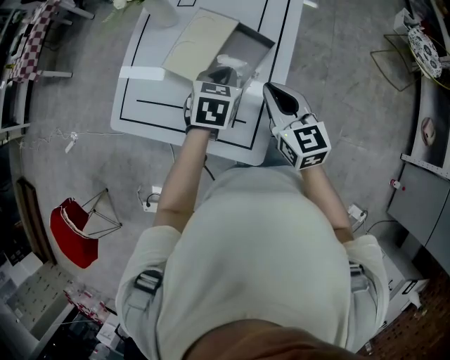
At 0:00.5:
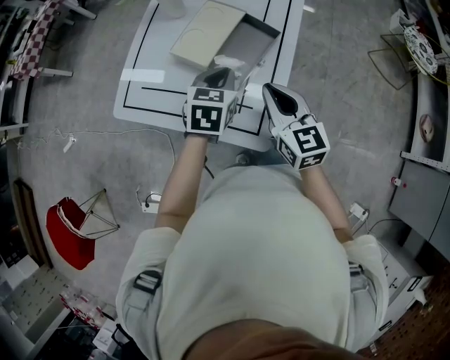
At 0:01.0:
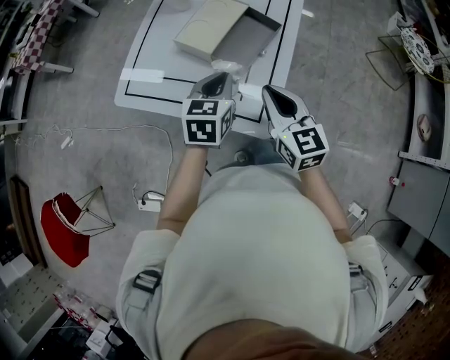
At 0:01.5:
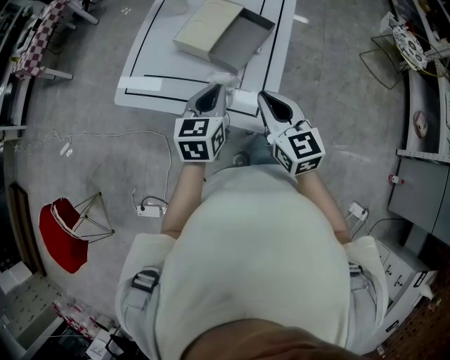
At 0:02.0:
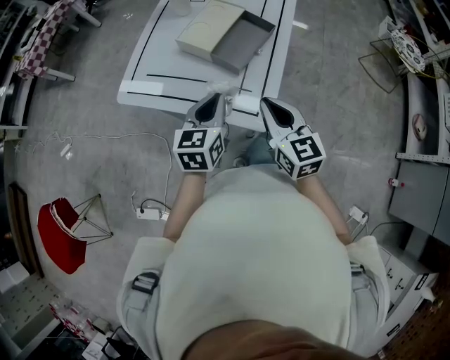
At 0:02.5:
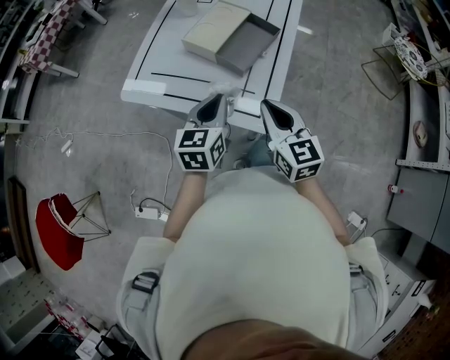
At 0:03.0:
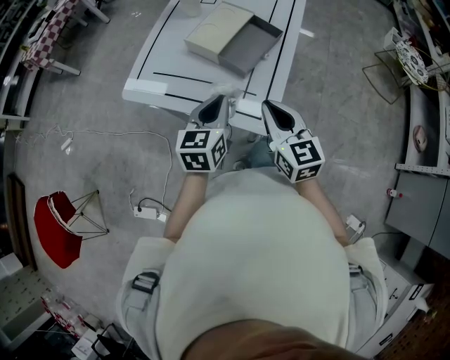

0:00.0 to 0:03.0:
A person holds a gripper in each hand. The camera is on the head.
0:00.0 to 0:01.5: The left gripper moves backward and to the left, roughly 15 cm, and changes its angle by roughly 20 degrees; the right gripper is displaced backward by approximately 15 cm.
0:01.5 to 0:03.0: The grippers make only small movements.

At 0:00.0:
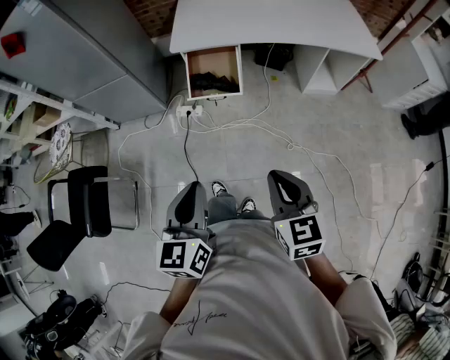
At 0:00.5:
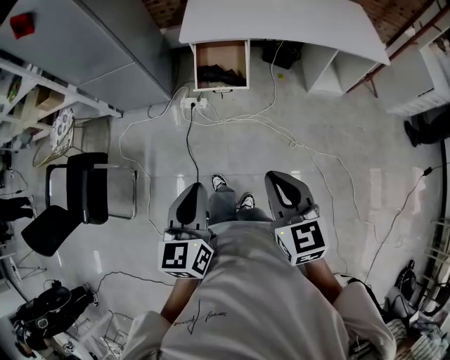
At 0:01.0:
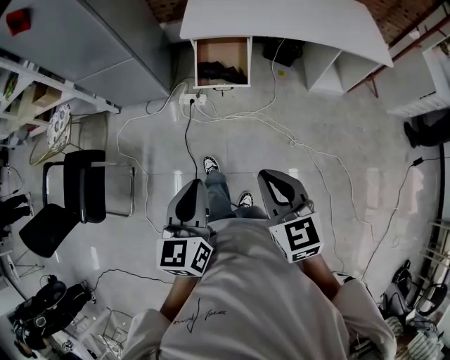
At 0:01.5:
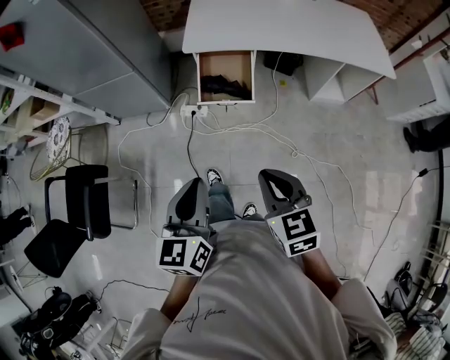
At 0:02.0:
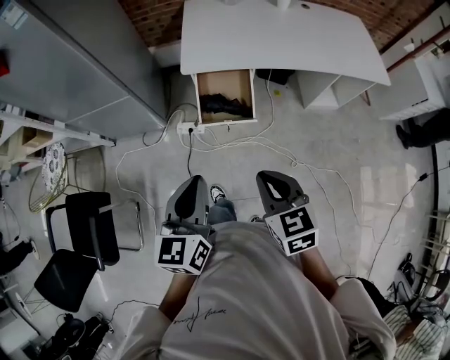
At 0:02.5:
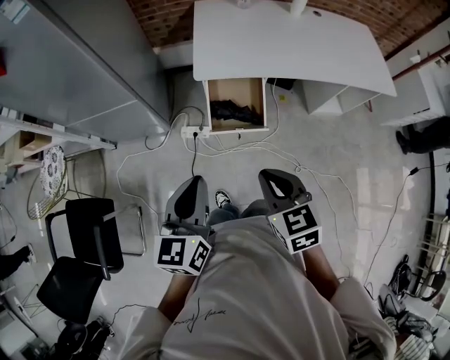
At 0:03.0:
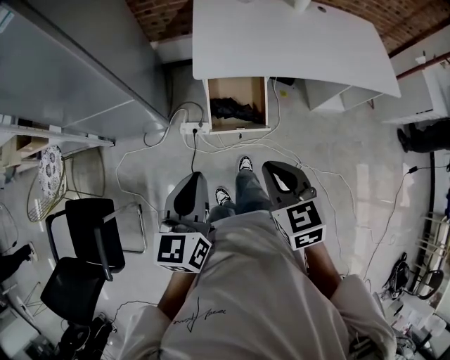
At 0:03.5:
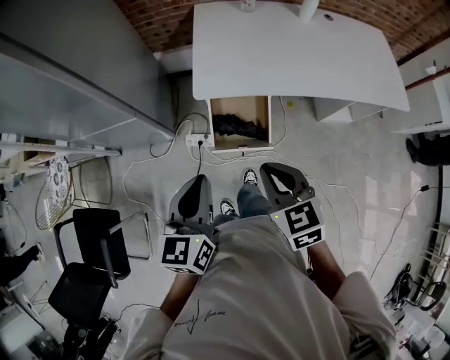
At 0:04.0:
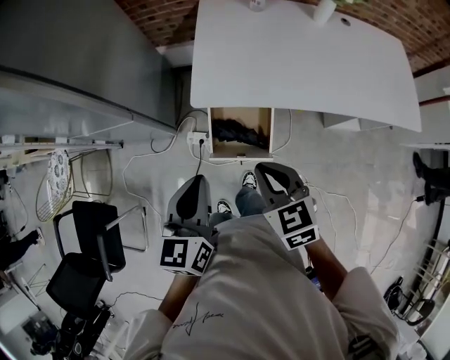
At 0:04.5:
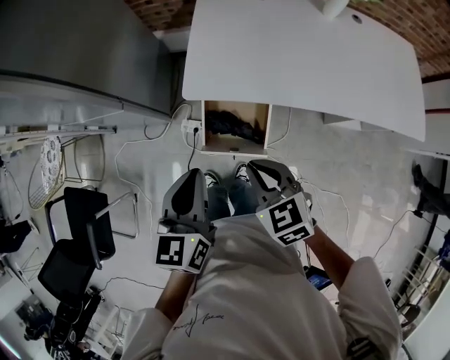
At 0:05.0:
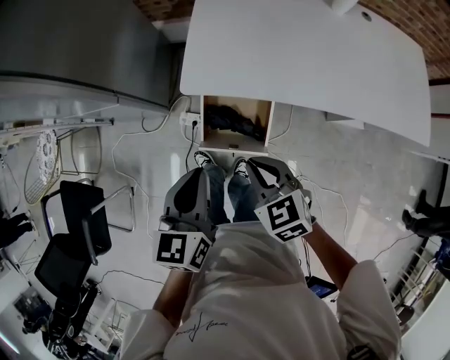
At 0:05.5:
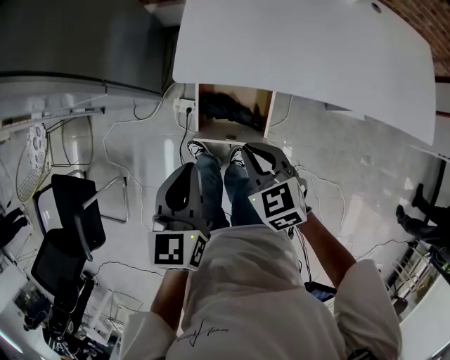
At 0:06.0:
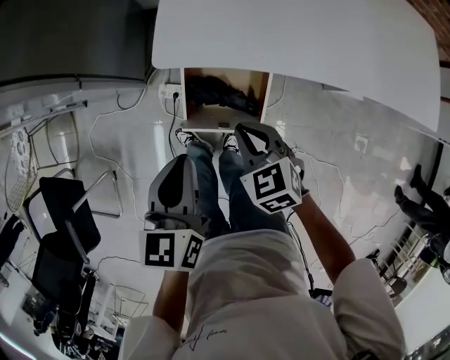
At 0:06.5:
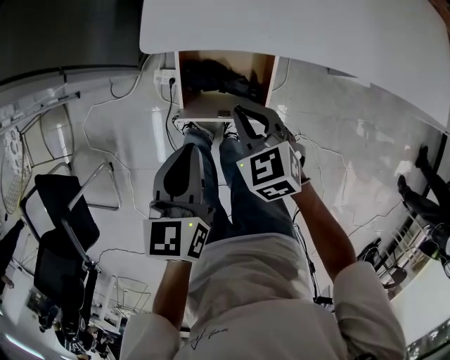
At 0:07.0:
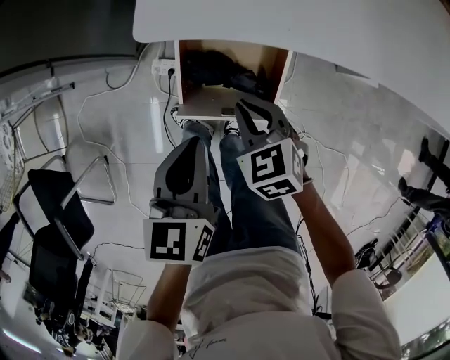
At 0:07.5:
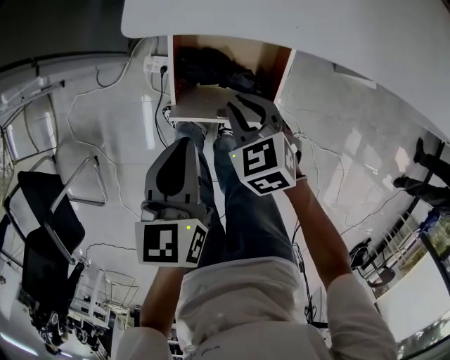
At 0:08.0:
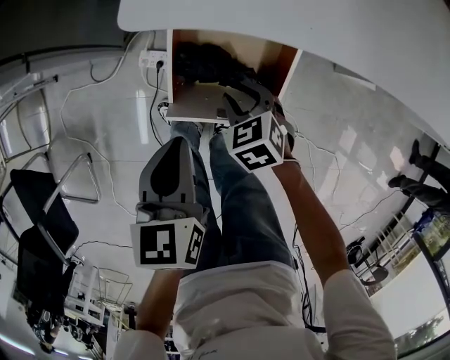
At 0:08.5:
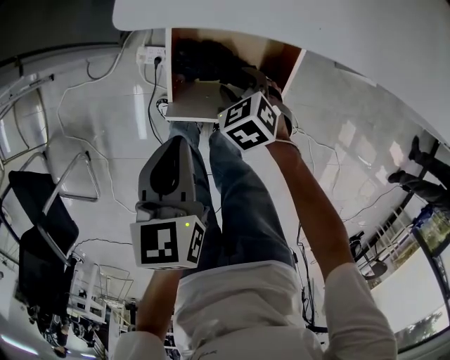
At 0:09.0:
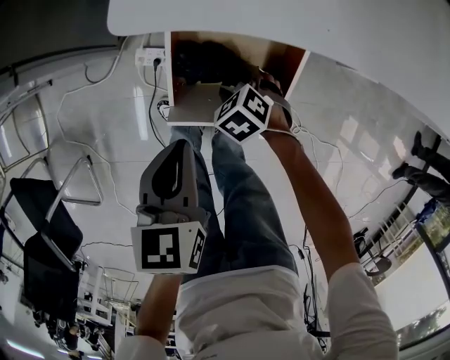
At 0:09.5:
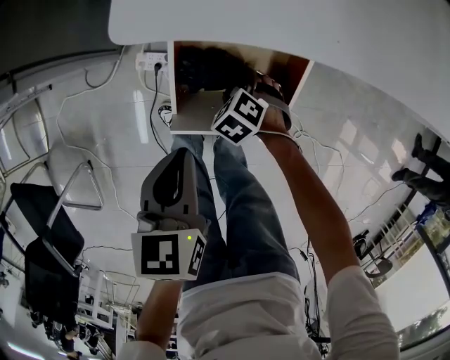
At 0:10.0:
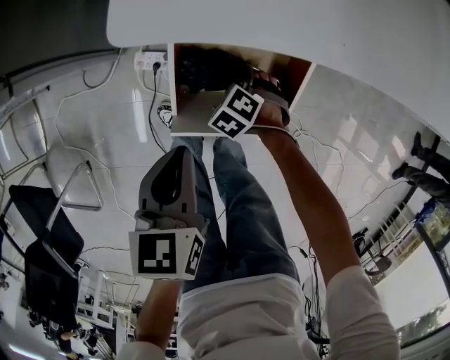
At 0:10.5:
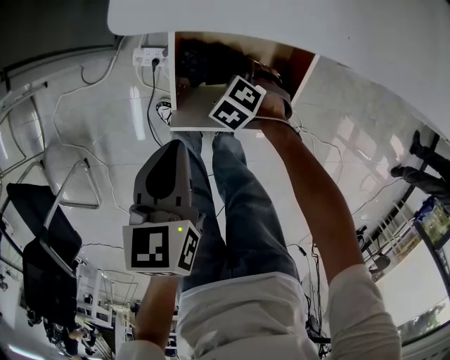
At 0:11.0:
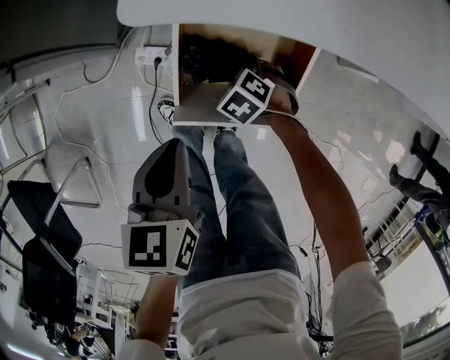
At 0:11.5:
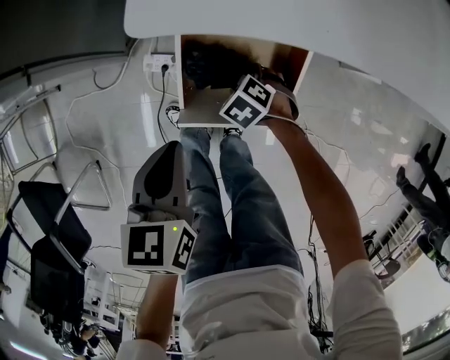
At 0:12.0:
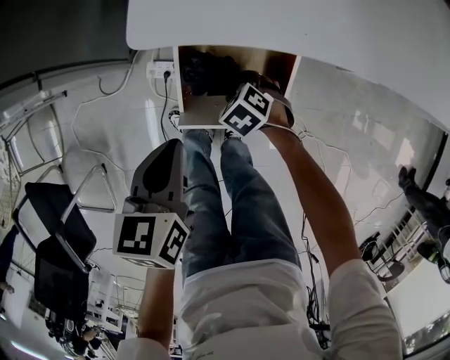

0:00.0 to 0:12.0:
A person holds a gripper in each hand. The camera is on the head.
0:00.0 to 0:02.0: The right gripper moves forward and to the left, some 20 cm. The left gripper moves forward, some 20 cm.
0:02.0 to 0:04.0: Both grippers move forward, about 25 cm.
0:04.0 to 0:06.0: Both grippers travel together downward, about 15 cm.
0:06.0 to 0:08.0: The grippers both shift downward by roughly 20 cm. The right gripper opens.
0:08.0 to 0:10.0: The right gripper is displaced downward by about 15 cm, turns by roughly 30 degrees, and opens.
0:10.0 to 0:12.0: Both grippers move upward, about 5 cm.

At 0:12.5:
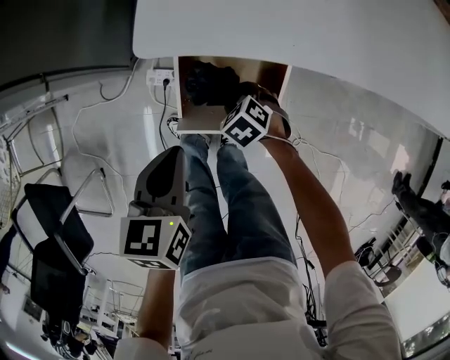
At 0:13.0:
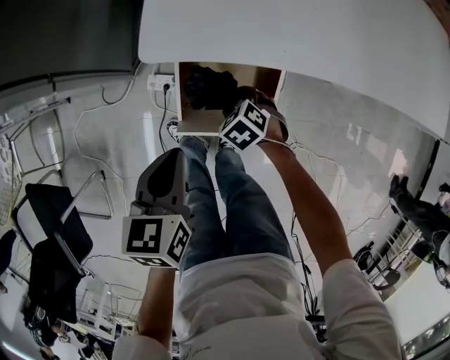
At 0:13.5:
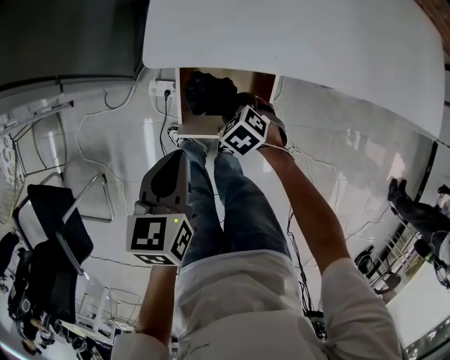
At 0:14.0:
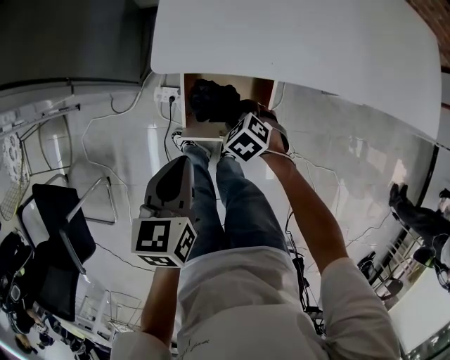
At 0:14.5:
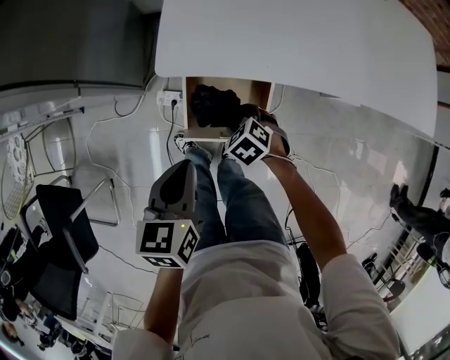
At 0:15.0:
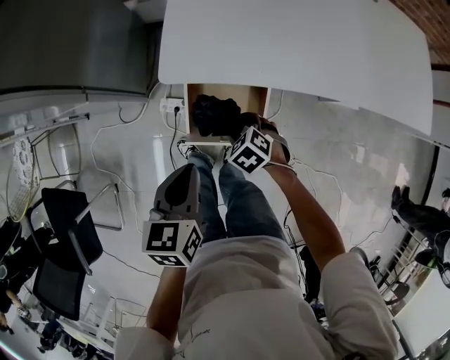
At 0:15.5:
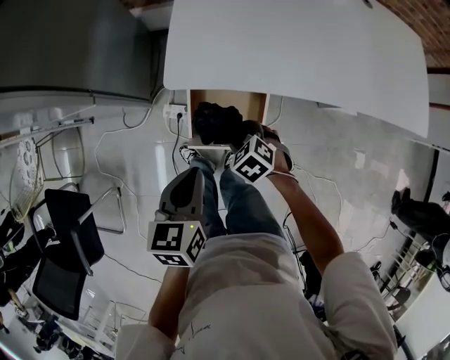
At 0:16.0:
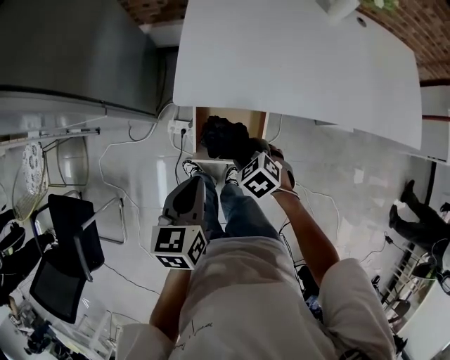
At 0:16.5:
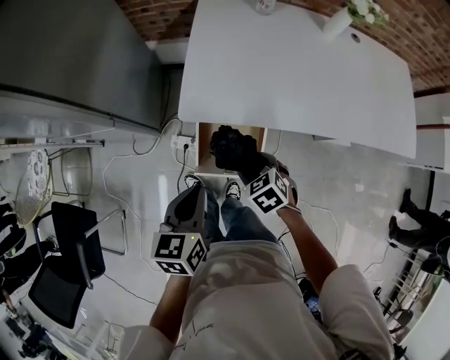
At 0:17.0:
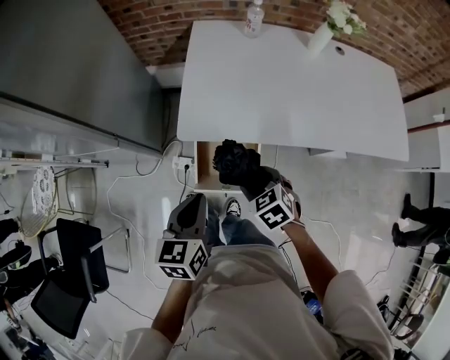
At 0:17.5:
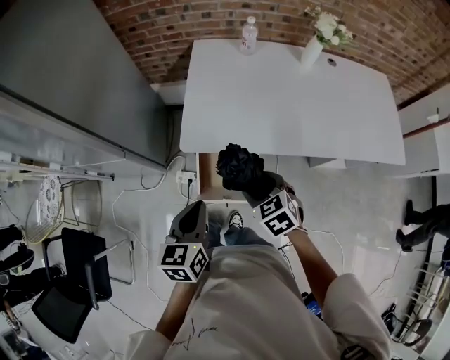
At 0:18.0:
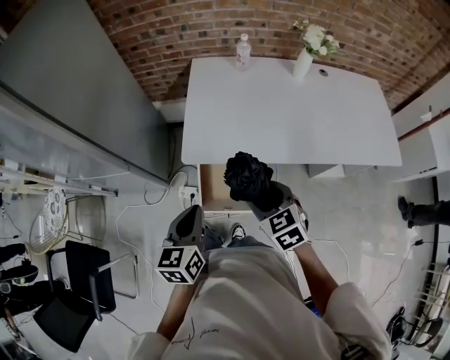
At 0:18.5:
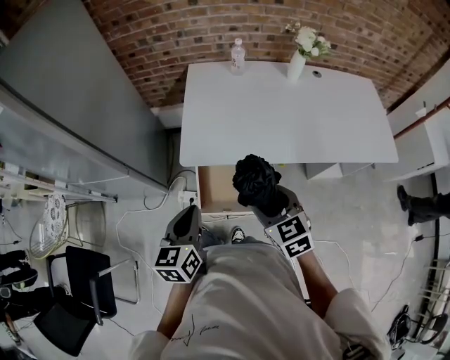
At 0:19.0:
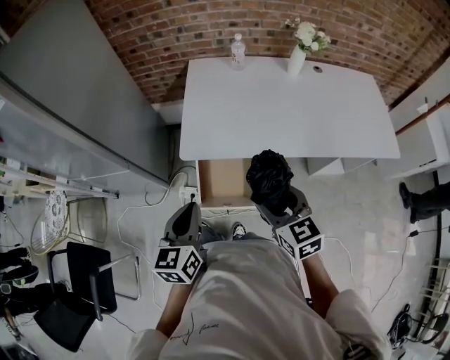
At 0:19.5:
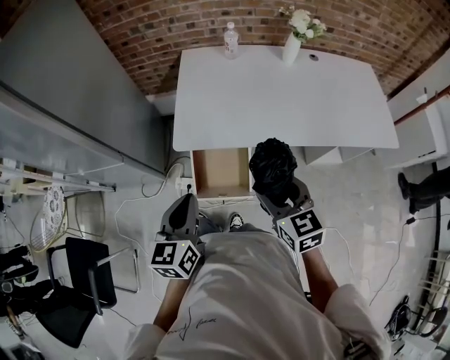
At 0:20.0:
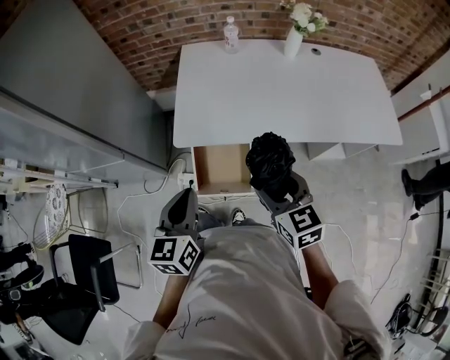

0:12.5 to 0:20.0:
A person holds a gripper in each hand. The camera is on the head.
0:12.5 to 0:14.5: The grippers both shift upward by some 10 cm.
0:14.5 to 0:16.5: The right gripper is displaced upward by approximately 15 cm. Meanwhile the left gripper is displaced upward by roughly 10 cm.
0:16.5 to 0:18.0: The left gripper goes roughly 5 cm upward; the right gripper moves upward, roughly 15 cm, and swivels roughly 20 degrees.
0:18.0 to 0:20.0: The right gripper ends up some 5 cm from where it was.

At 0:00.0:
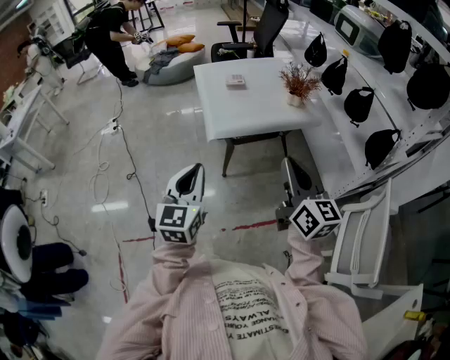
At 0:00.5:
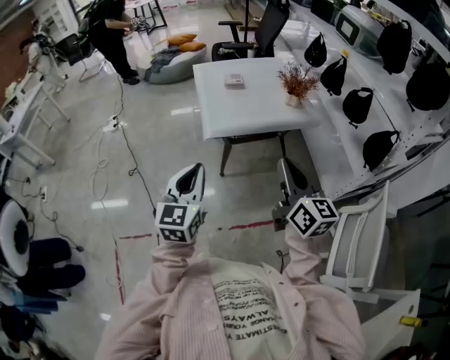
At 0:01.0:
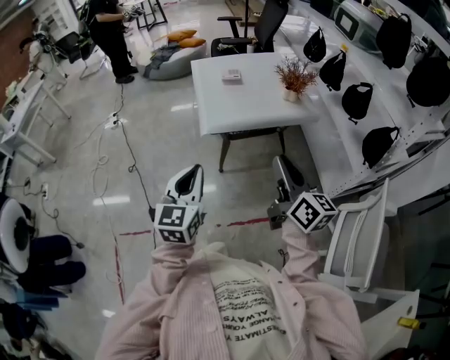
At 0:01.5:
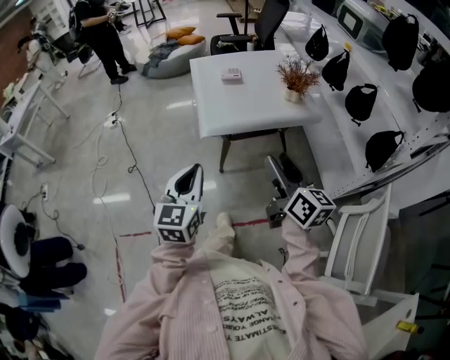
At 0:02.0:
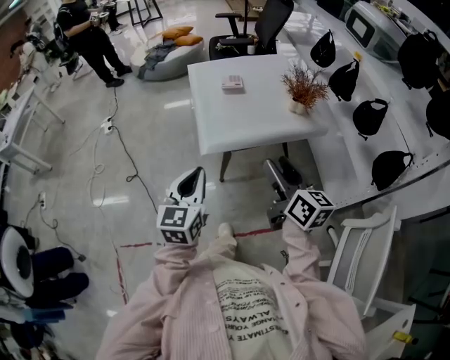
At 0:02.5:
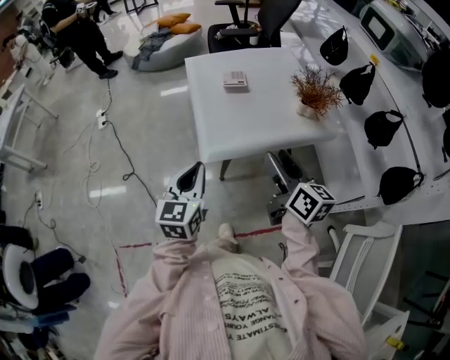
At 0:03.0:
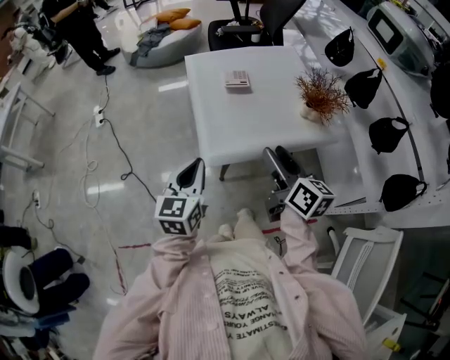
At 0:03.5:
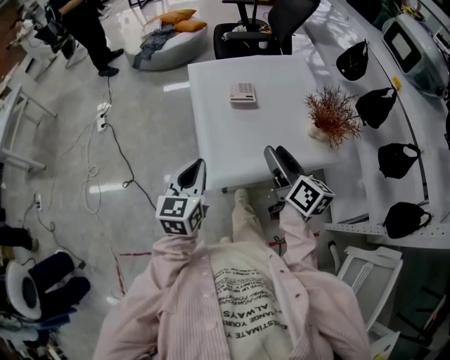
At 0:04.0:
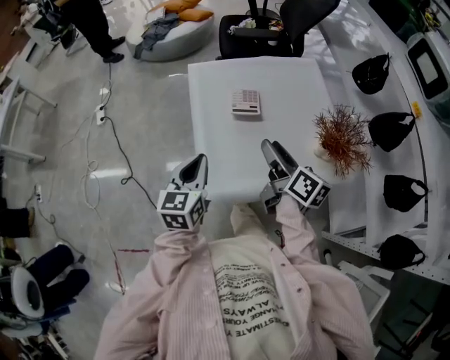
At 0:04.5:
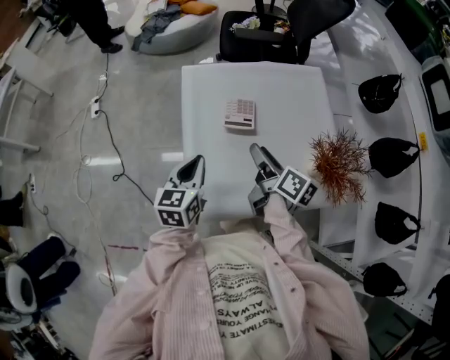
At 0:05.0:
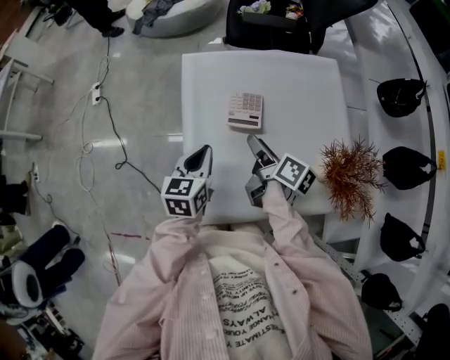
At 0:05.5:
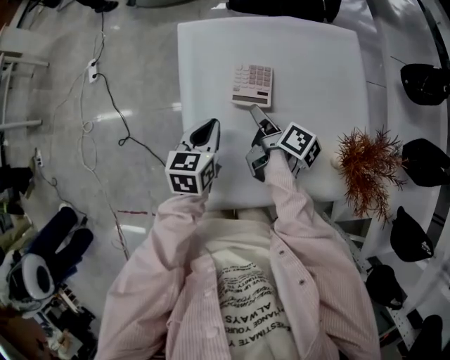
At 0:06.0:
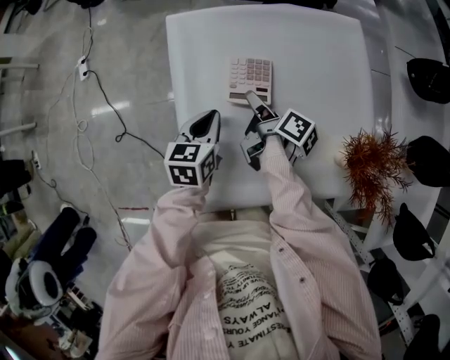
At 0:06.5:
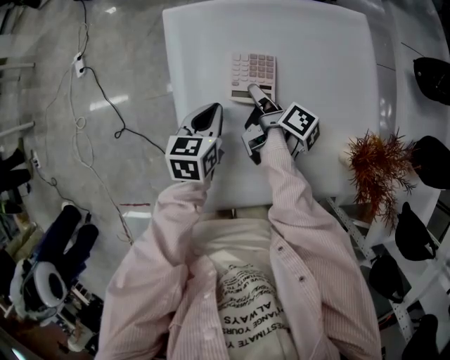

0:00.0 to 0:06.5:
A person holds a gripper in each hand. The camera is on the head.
0:00.0 to 0:02.0: The left gripper shifts by approximately 15 cm.
0:02.0 to 0:04.5: The left gripper shifts by some 40 cm.
0:04.5 to 0:06.5: The left gripper is displaced downward by some 15 cm.
